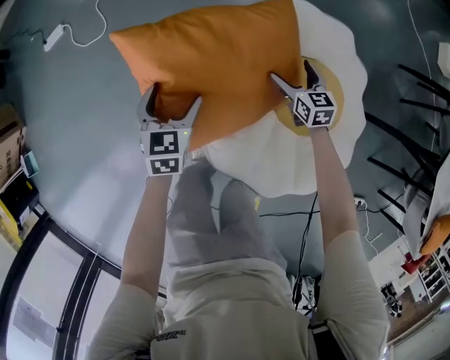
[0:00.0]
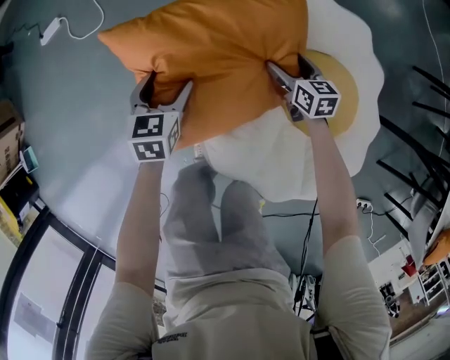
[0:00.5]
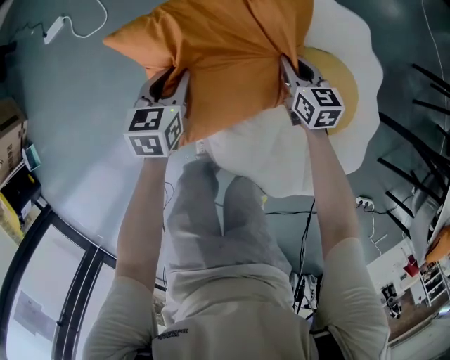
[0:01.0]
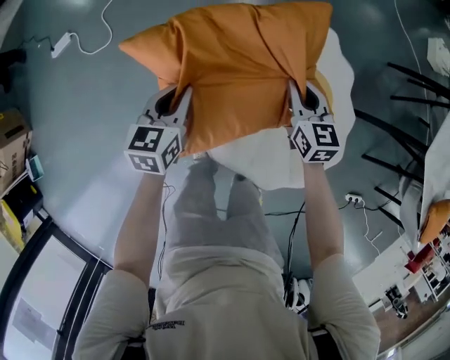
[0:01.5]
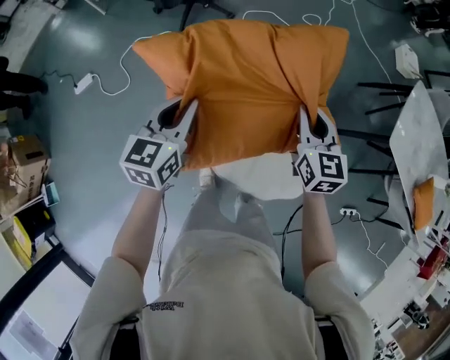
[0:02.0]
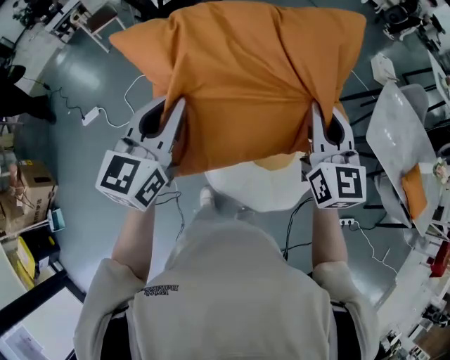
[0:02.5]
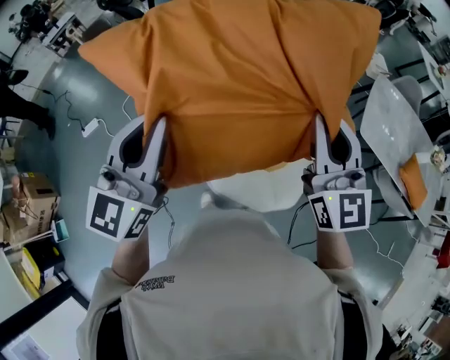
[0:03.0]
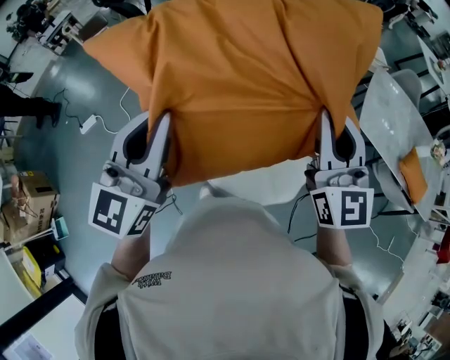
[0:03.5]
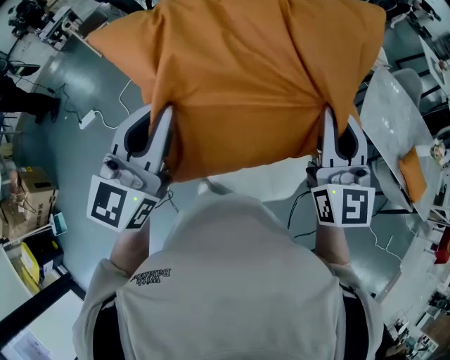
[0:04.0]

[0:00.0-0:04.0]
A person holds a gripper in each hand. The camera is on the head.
0:00.0 to 0:02.0: Both grippers travel together upward, some 40 cm. The right gripper rotates roughly 30 degrees, and closes up. Meanwhile the left gripper rotates approximately 30 degrees, and closes up.
0:02.0 to 0:04.0: Both grippers move upward and backward, approximately 35 cm. The left gripper rotates some 30 degrees, while the right gripper turns by some 30 degrees.

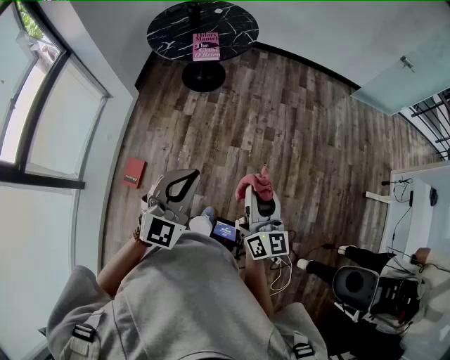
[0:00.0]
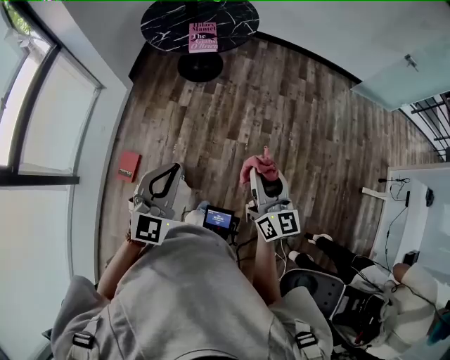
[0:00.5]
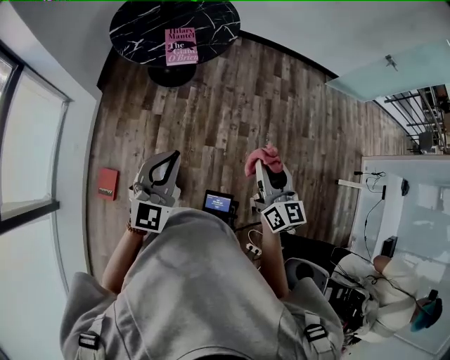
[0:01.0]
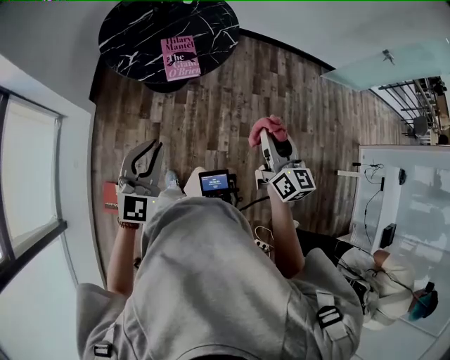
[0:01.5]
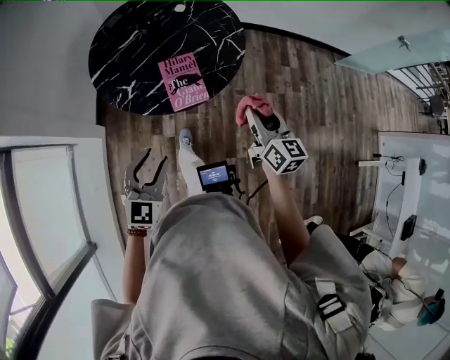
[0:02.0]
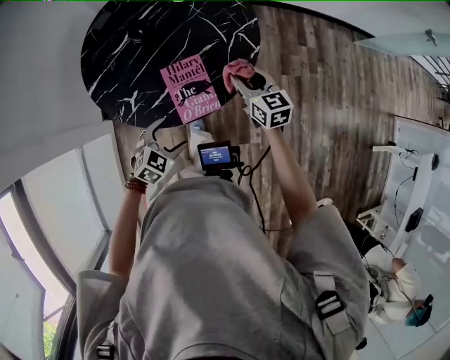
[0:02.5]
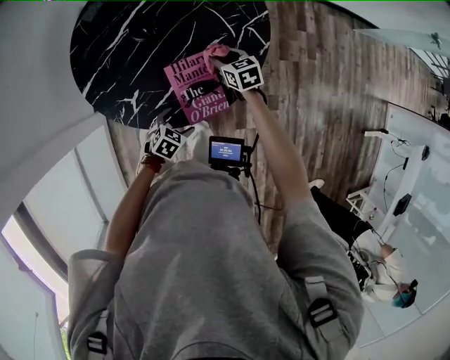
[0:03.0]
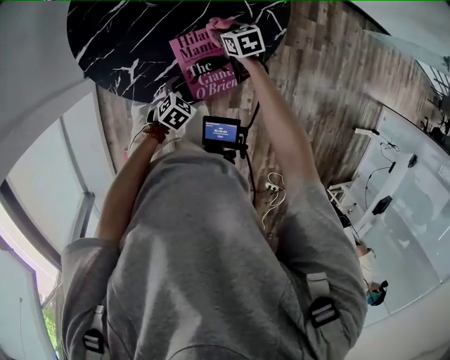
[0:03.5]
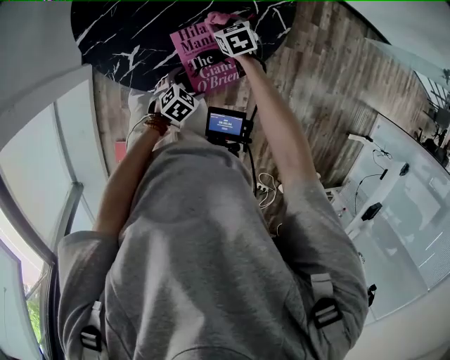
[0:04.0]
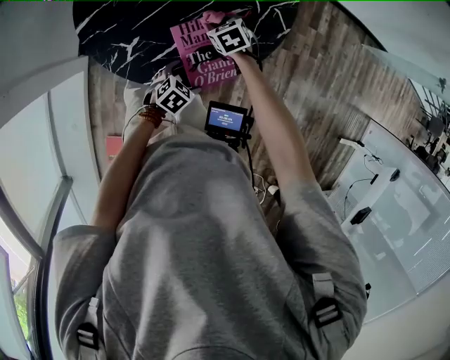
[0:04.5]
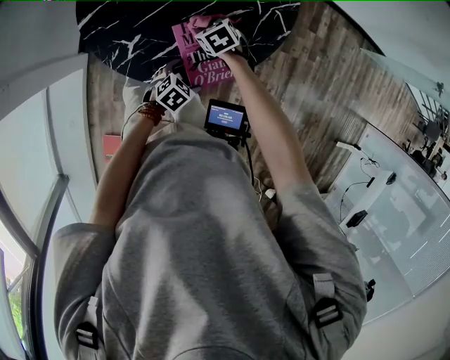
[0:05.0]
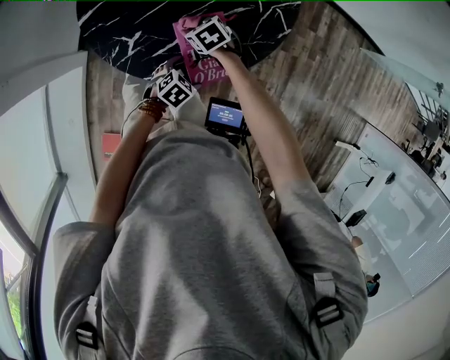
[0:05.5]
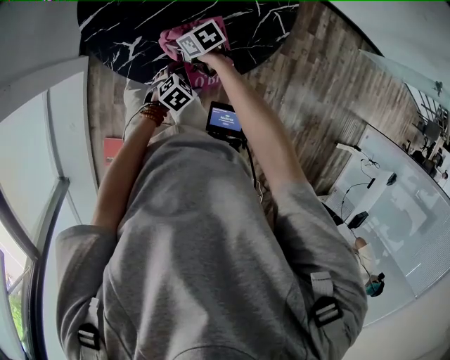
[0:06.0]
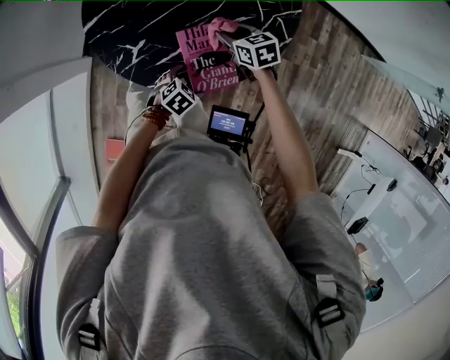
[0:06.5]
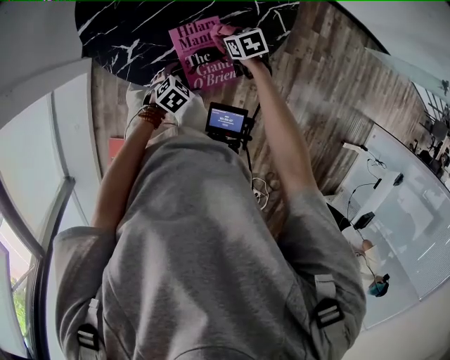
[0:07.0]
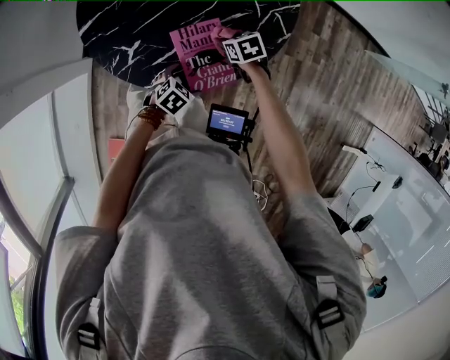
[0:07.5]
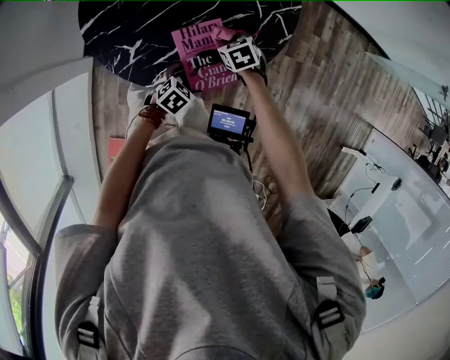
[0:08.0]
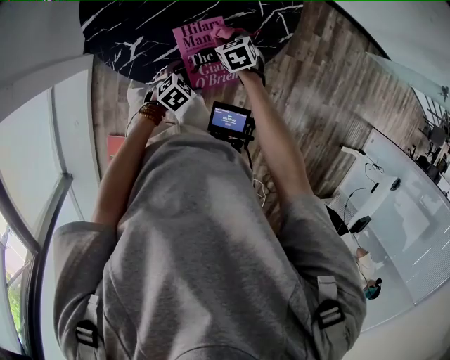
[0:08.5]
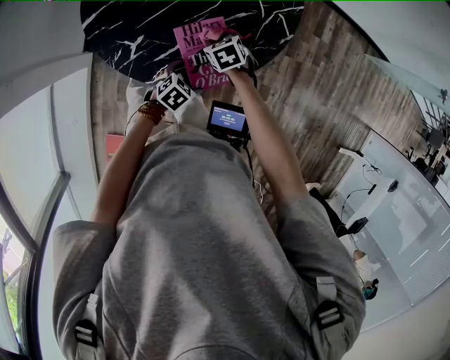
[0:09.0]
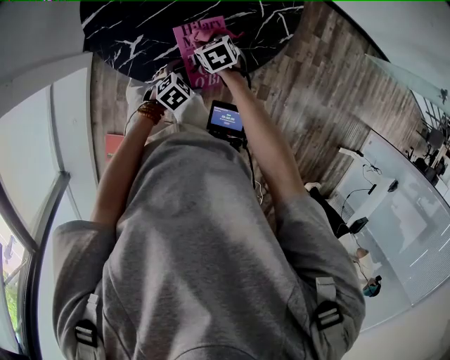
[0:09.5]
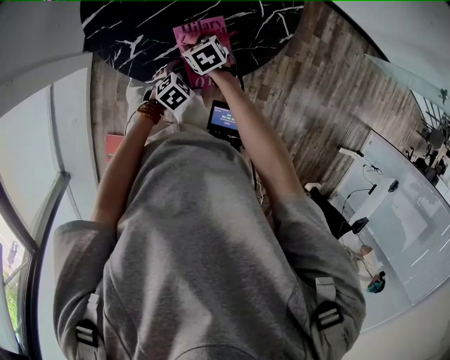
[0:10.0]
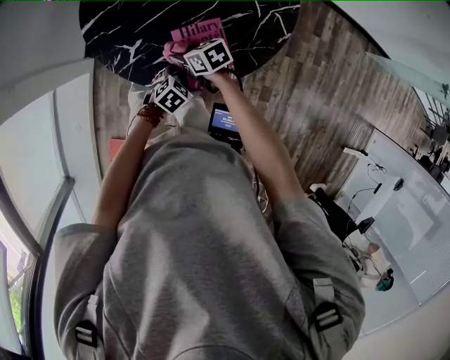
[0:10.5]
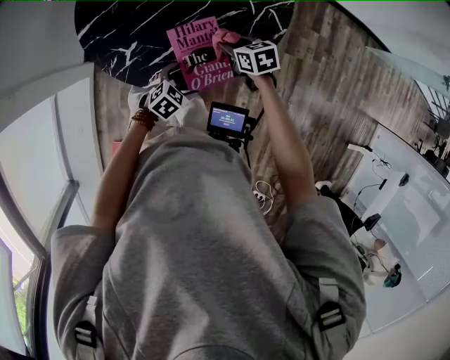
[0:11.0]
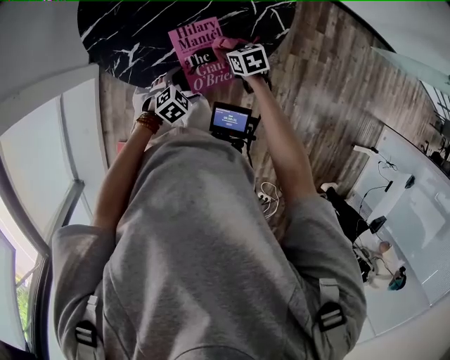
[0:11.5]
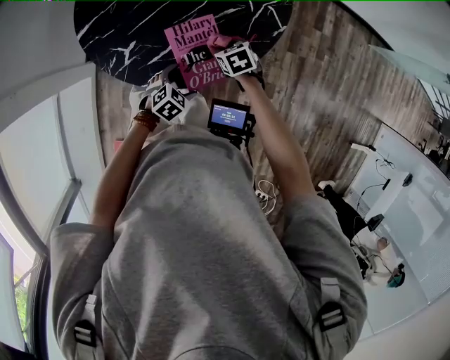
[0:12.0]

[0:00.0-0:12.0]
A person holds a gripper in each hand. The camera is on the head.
0:00.0 to 0:02.0: Both grippers are carried forward, roughly 60 cm. The left gripper opens its fingers.
0:02.0 to 0:04.0: The left gripper is displaced downward and forward by approximately 35 cm, points its fingers approximately 40 degrees further downward, and opens. Meanwhile the right gripper goes roughly 50 cm downward, forward and to the left, and tips its fingers downward by some 50 degrees.
0:04.0 to 0:06.0: The right gripper shifts by approximately 15 cm, and turns by approximately 30 degrees.
0:06.0 to 0:08.0: The right gripper ends up some 15 cm from where it was, and rotates some 30 degrees.
0:08.0 to 0:10.0: The right gripper moves to the left and backward, roughly 10 cm.
0:10.0 to 0:12.0: The right gripper shifts by some 15 cm.

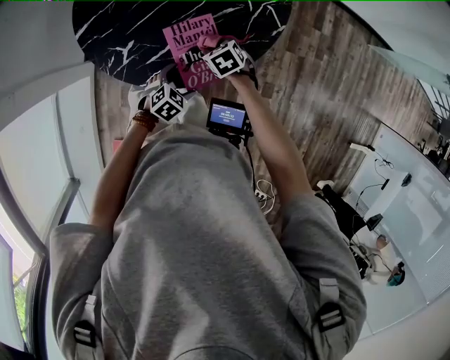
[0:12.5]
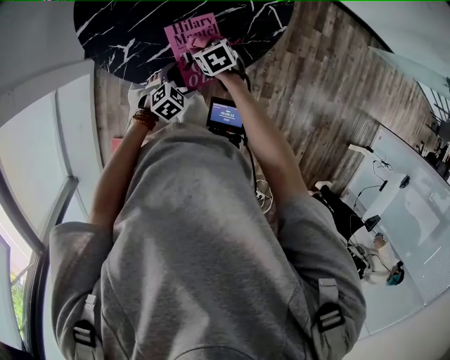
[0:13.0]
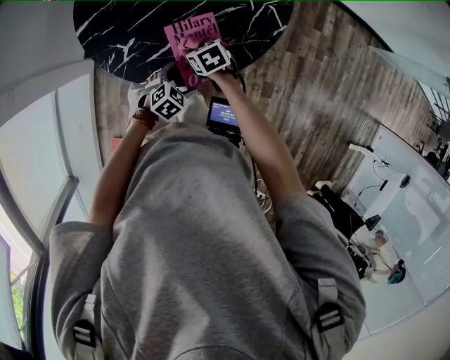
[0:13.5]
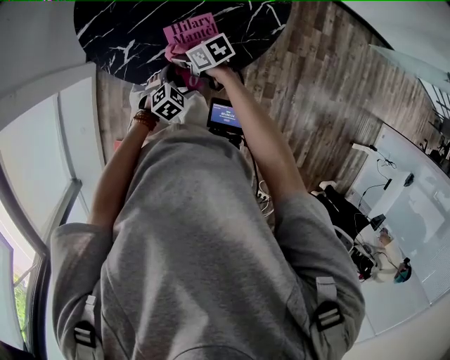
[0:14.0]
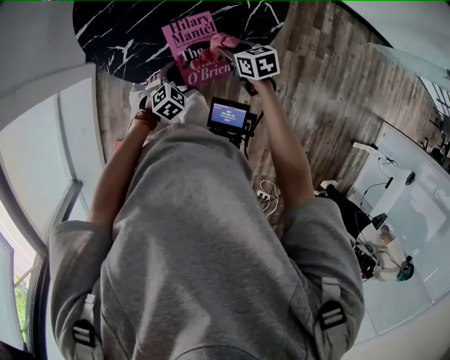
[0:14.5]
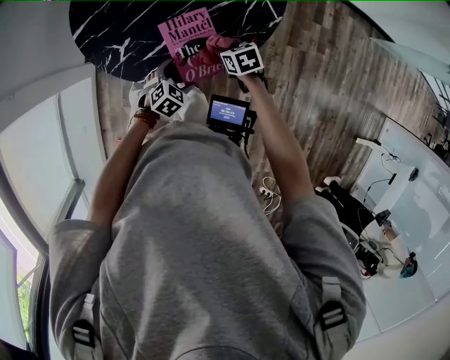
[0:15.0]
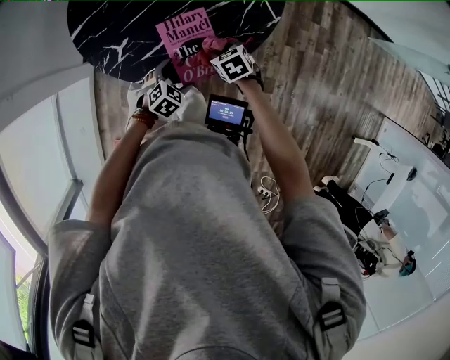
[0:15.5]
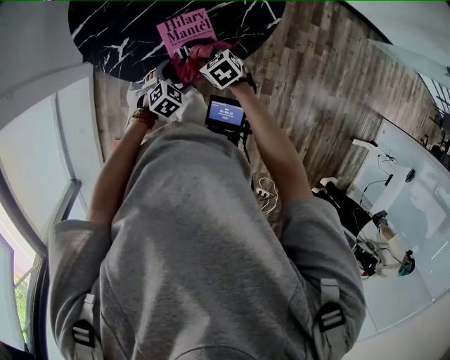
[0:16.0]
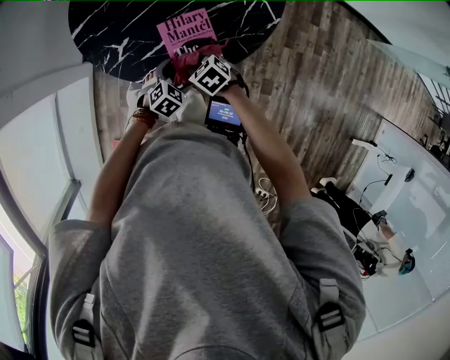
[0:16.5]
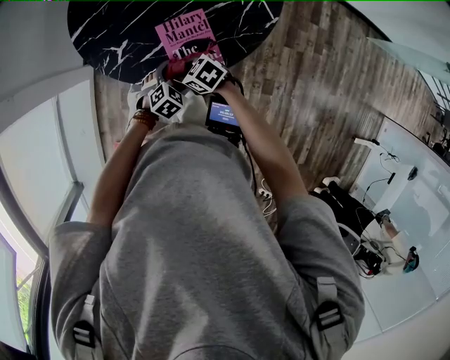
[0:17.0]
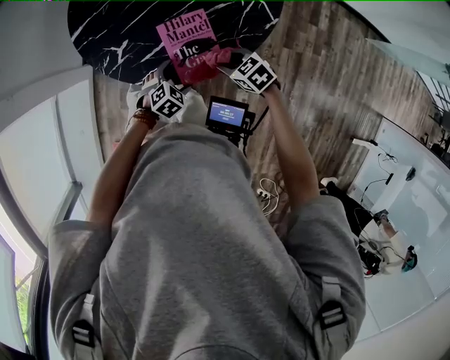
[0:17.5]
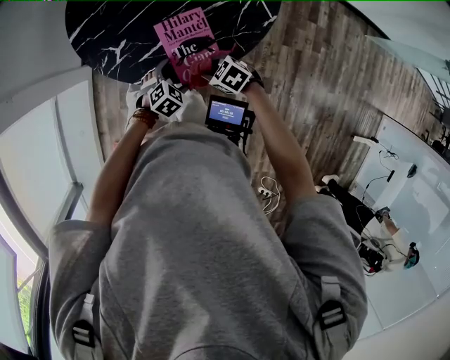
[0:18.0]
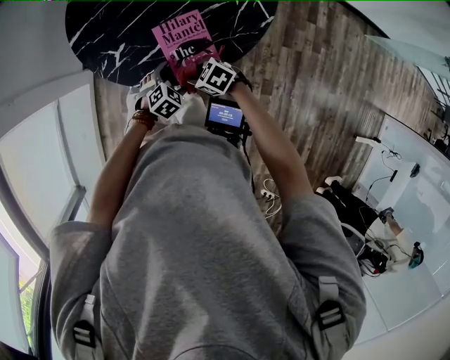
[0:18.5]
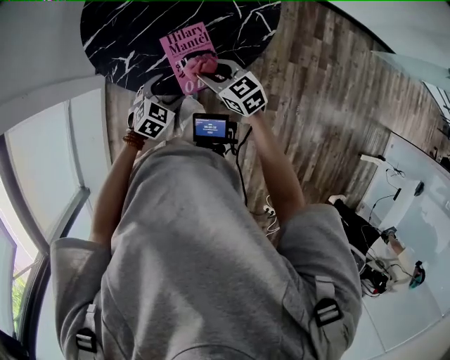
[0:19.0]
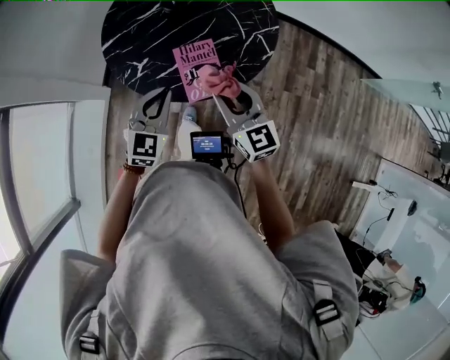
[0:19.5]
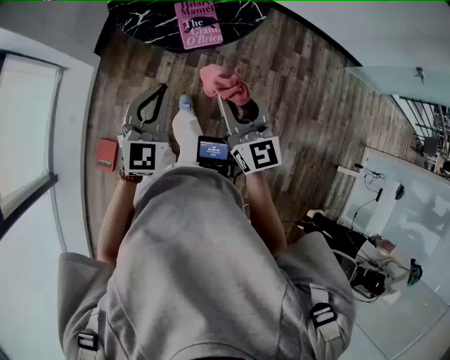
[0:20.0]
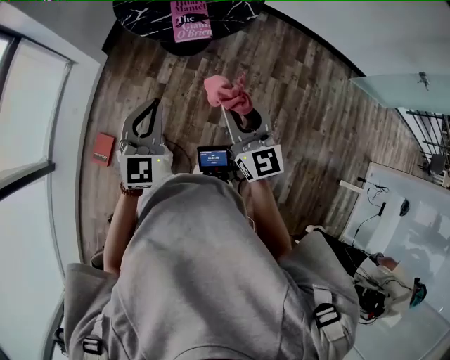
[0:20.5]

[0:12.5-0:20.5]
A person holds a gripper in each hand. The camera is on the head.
0:12.5 to 0:14.5: The right gripper turns by some 20 degrees.
0:14.5 to 0:16.5: The right gripper travels to the left and backward by approximately 10 cm, and changes its angle by about 30 degrees.
0:18.5 to 0:20.5: Both grippers travel together upward, some 35 cm. The right gripper points its fingers roughly 50 degrees further upward. Meanwhile the left gripper tilts its fingers some 50 degrees upward, and closes.

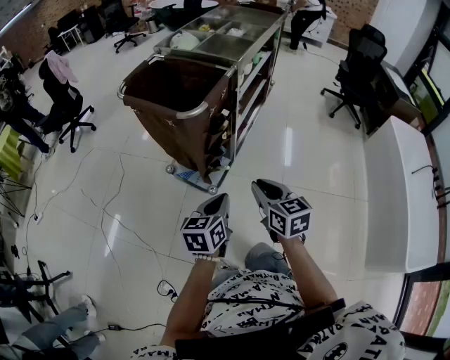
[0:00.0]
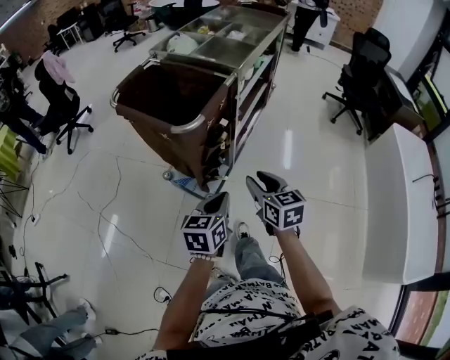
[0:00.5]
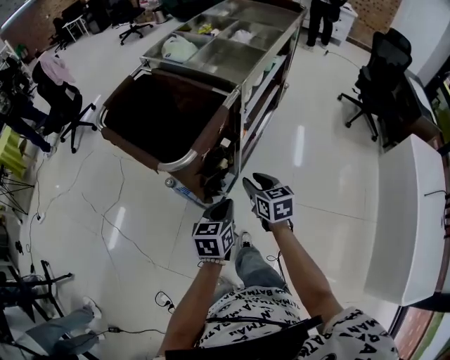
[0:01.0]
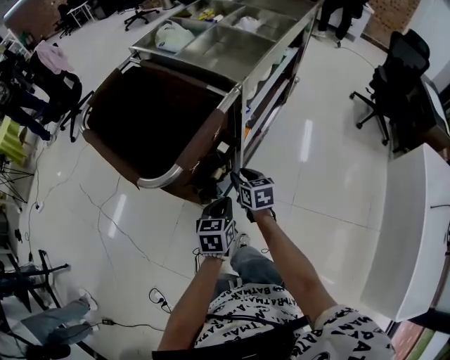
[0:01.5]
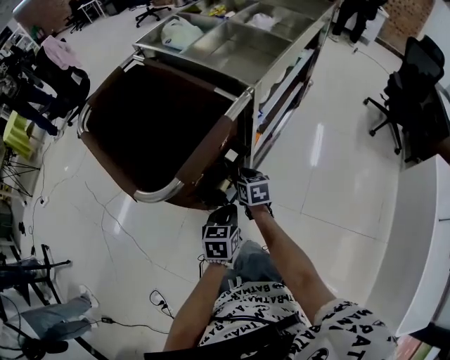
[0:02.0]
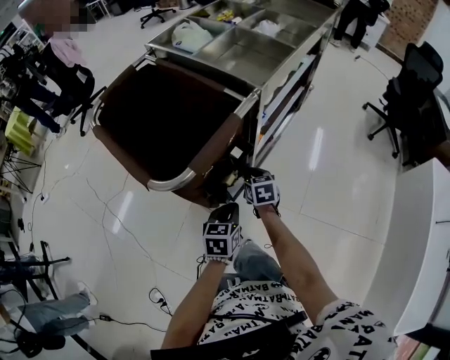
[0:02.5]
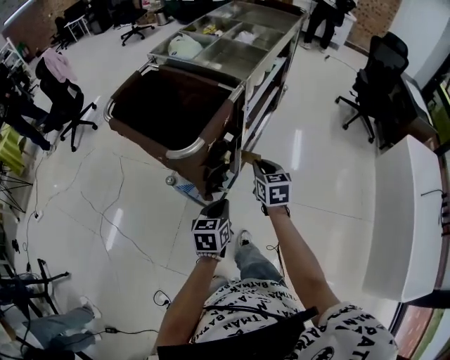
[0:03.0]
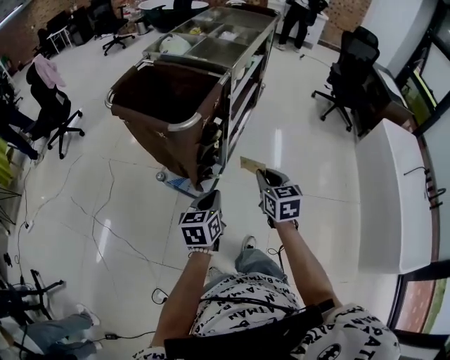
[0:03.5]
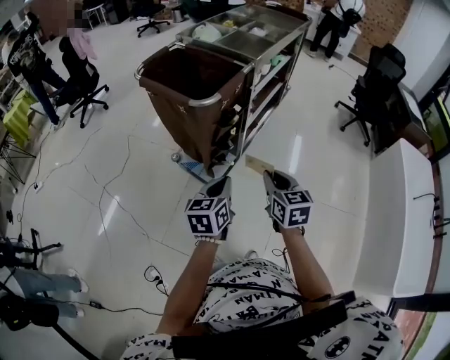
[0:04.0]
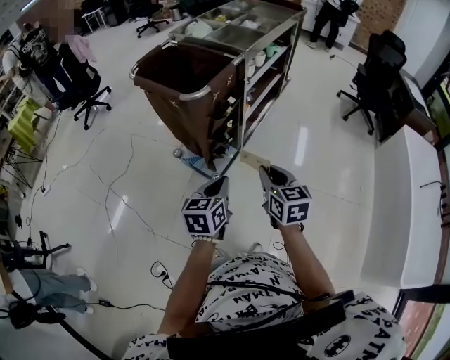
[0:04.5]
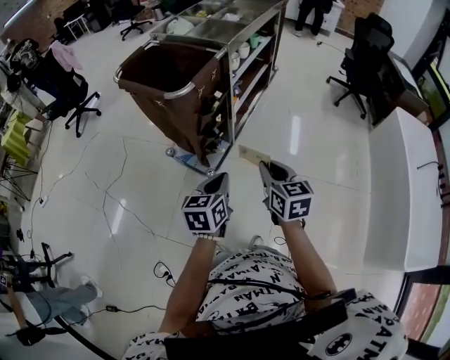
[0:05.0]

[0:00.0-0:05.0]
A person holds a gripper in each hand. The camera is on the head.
0:00.0 to 0:02.5: Both grippers move forward and downward, roughly 40 cm. The right gripper opens, then closes again.
0:02.5 to 0:05.0: Both grippers travel together backward and upward, roughly 40 cm. The right gripper rotates some 20 degrees.
